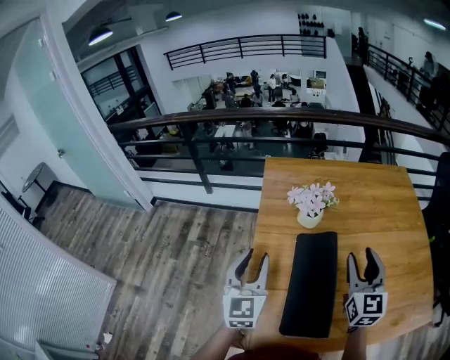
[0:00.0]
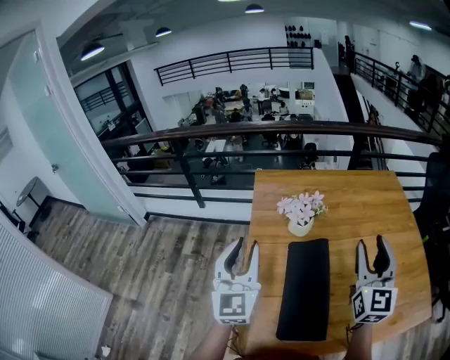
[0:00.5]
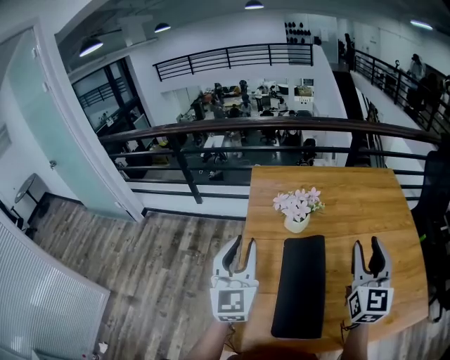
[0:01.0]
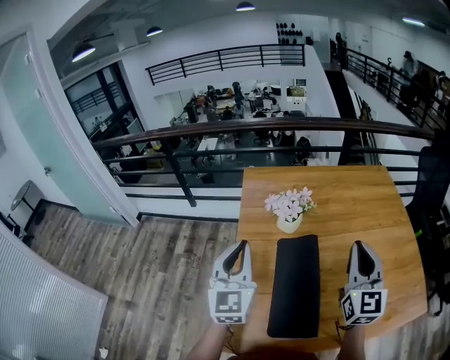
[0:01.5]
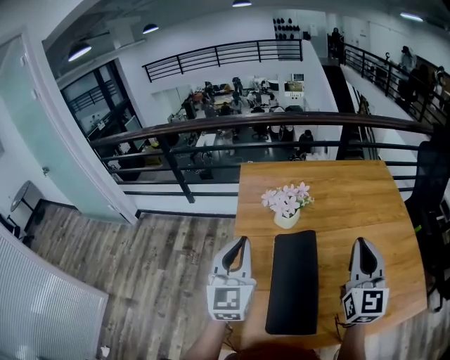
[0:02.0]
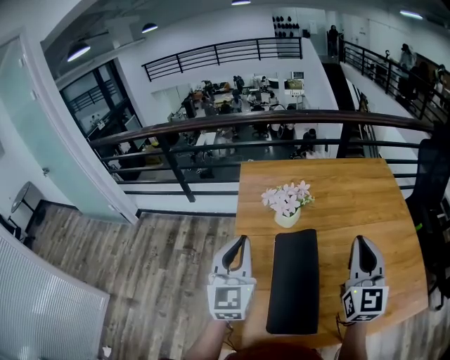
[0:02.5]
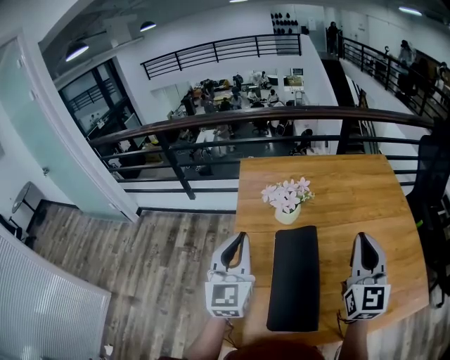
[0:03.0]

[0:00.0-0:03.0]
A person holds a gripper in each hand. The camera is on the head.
0.0 to 1.5 s: The two grippers go about 5 cm upward. The left gripper closes its fingers. The right gripper closes.
1.5 to 3.0 s: There are only small adjustments of the grippers.

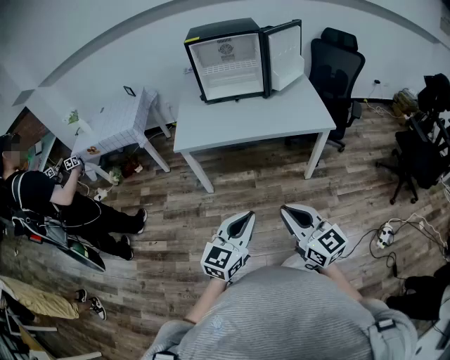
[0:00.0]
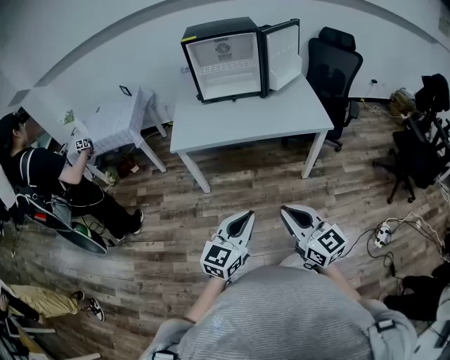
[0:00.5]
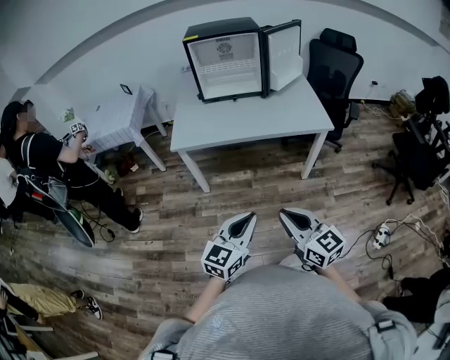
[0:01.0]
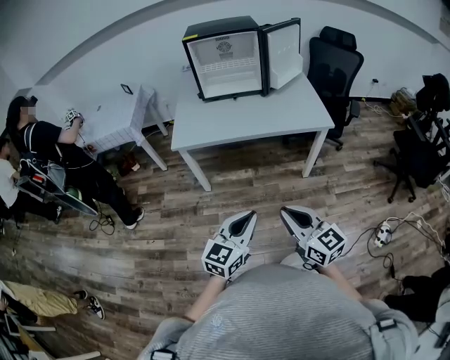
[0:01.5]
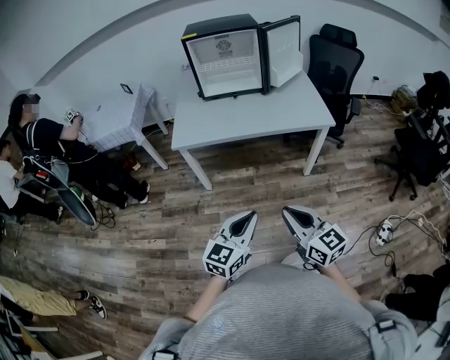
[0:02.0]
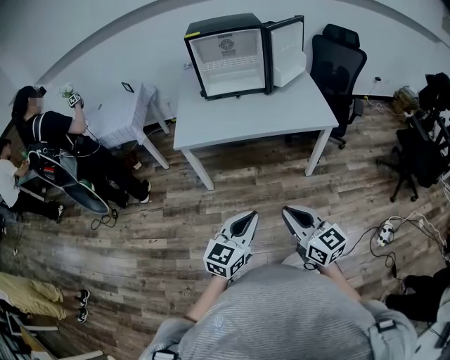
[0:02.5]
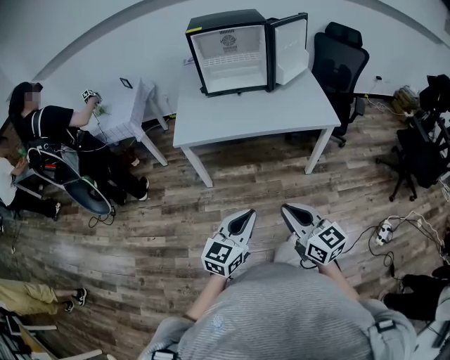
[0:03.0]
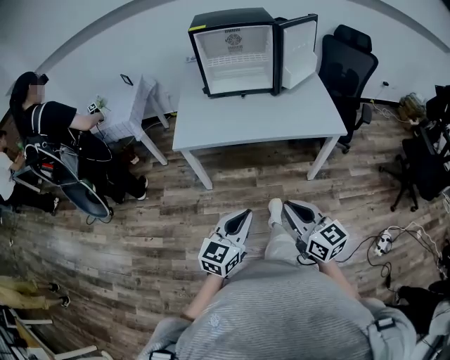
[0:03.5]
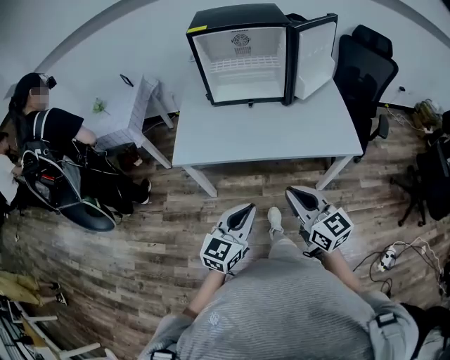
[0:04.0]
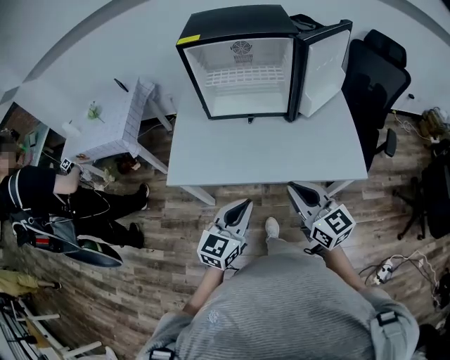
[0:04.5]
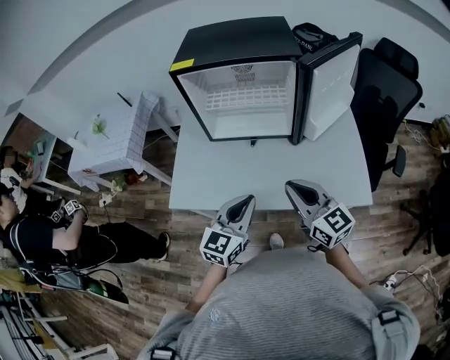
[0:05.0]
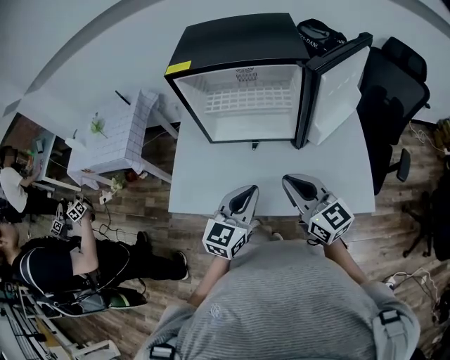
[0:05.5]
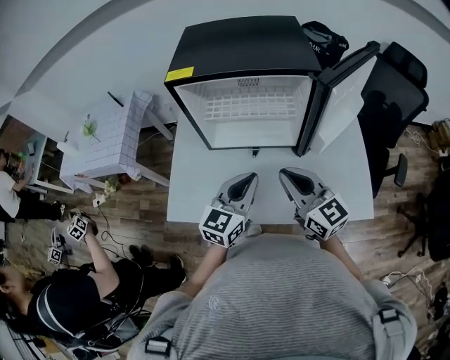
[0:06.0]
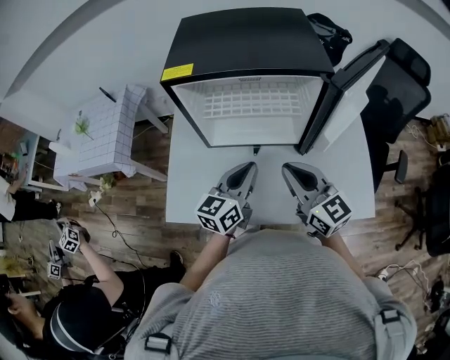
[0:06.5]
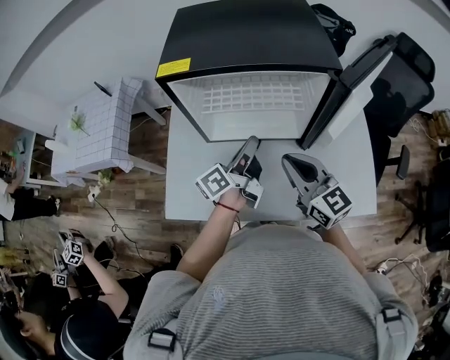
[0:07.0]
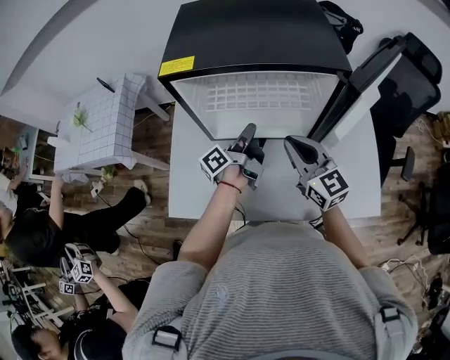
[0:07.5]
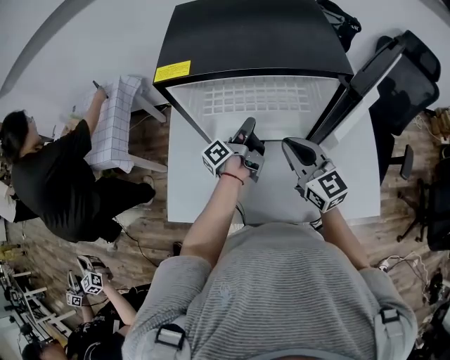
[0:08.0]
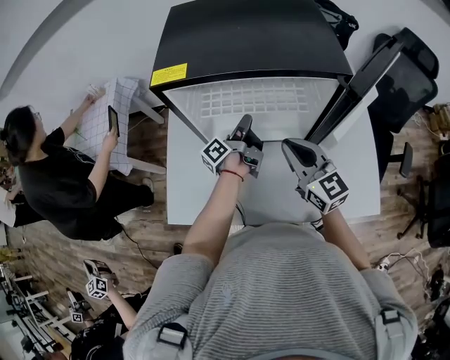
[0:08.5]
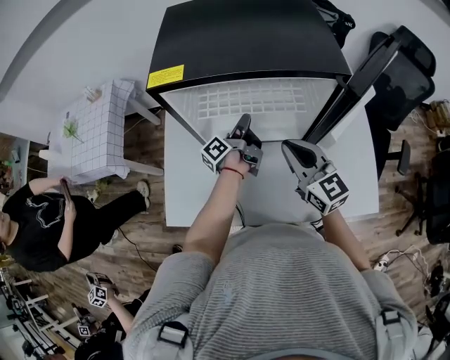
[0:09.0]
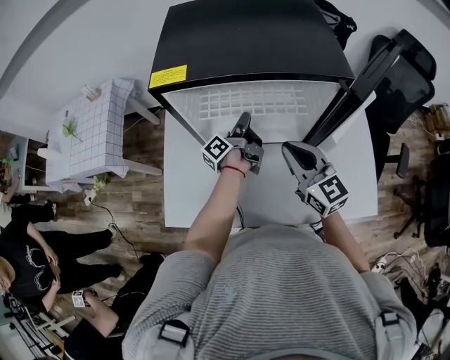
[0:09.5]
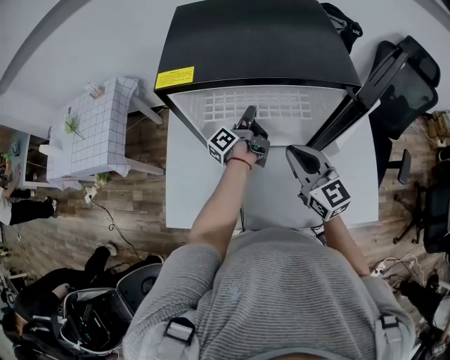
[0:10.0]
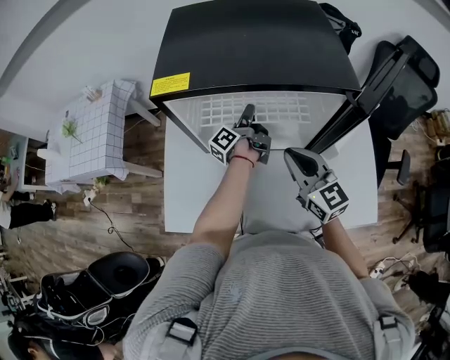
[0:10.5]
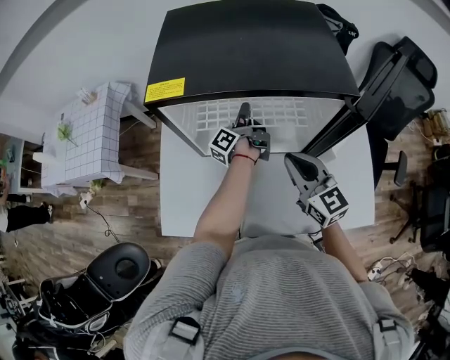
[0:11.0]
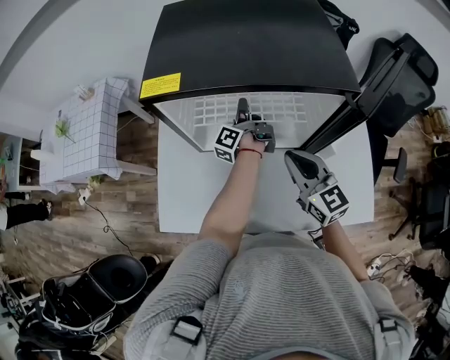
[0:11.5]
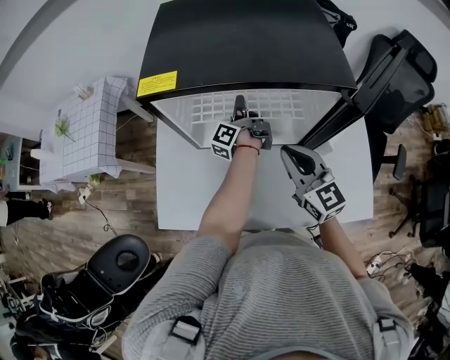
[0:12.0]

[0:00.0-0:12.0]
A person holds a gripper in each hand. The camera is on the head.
0.0 to 2.0 s: There are only small adjustments of the grippers.
2.0 to 4.0 s: The two grippers go roughly 25 cm forward.
4.0 to 6.0 s: Both grippers travel together forward, roughly 40 cm.
6.0 to 8.0 s: The left gripper goes roughly 25 cm forward and downward, and rotates around the line of its fingers by about 80 degrees, counterclockwise from behind; the right gripper shifts some 15 cm forward.
8.0 to 10.0 s: The left gripper shifts about 5 cm forward.
10.0 to 12.0 s: The grippers move only a little.

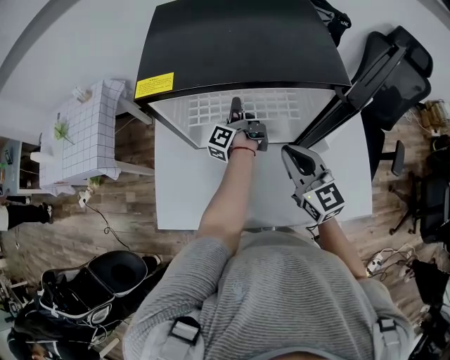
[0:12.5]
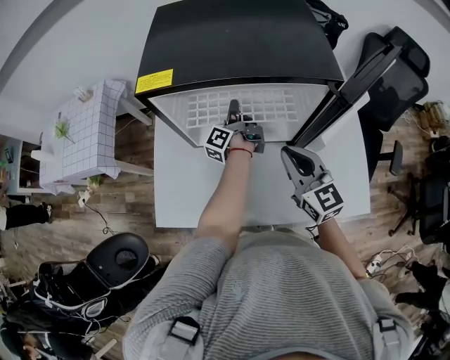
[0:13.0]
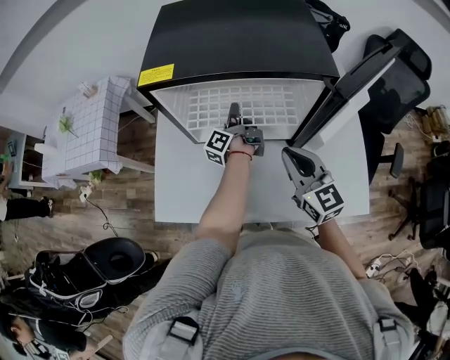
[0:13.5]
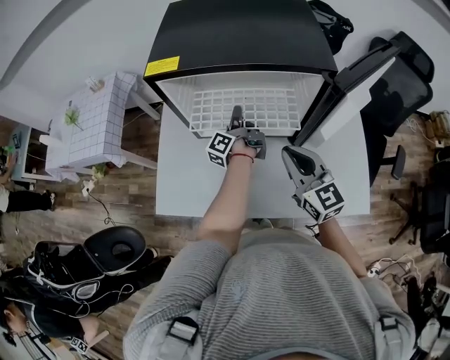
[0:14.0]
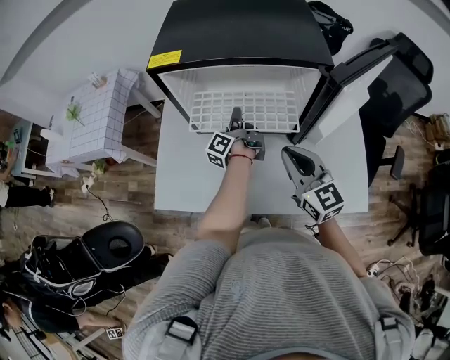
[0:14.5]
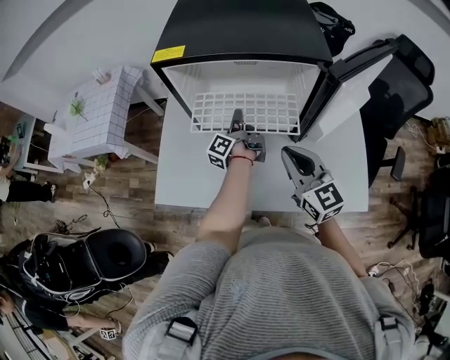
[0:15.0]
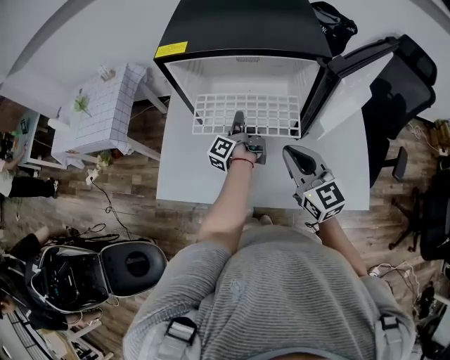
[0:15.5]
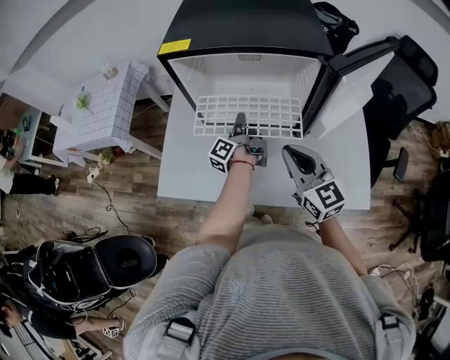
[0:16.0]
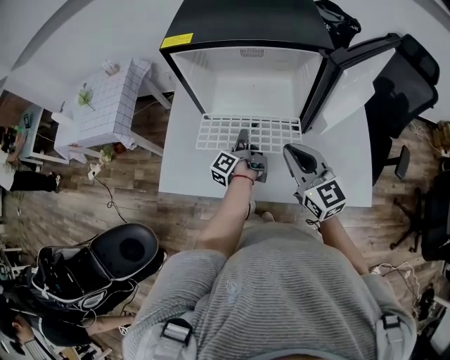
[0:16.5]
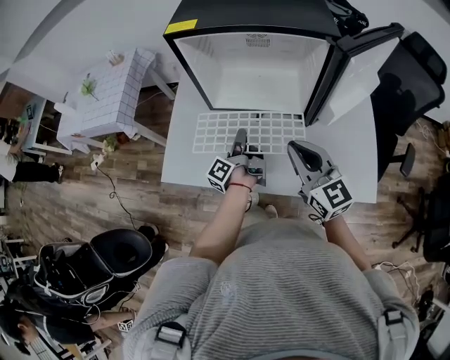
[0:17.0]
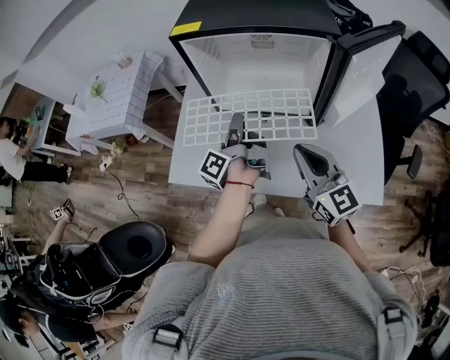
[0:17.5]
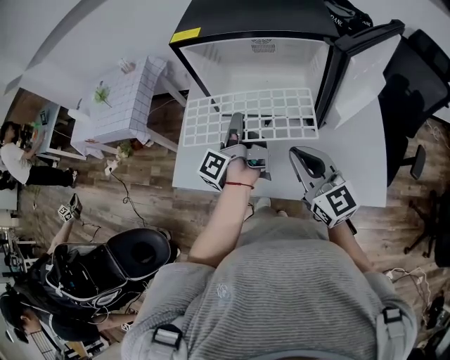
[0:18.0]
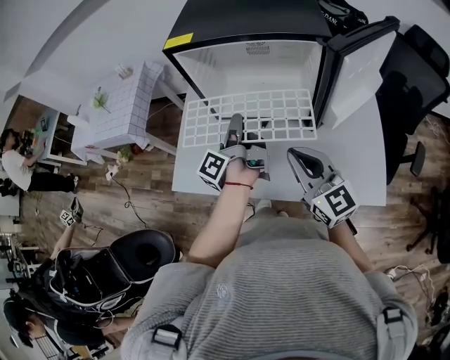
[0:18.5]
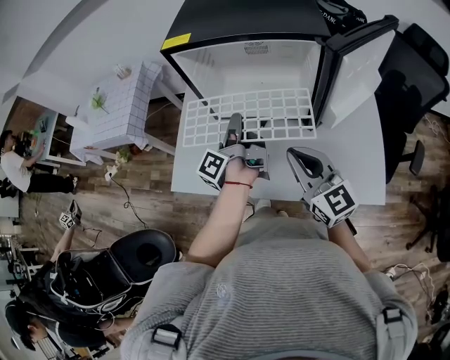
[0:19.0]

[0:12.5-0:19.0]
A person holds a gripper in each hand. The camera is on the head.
12.5 to 14.5 s: The two grippers go some 10 cm backward.
14.5 to 17.0 s: The left gripper moves backward and to the left, approximately 15 cm; the right gripper heads backward, covering roughly 5 cm.
17.0 to 19.0 s: The left gripper travels upward by approximately 10 cm.

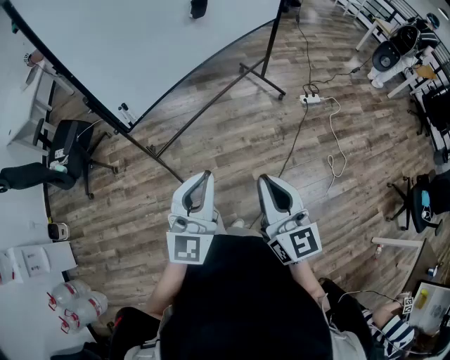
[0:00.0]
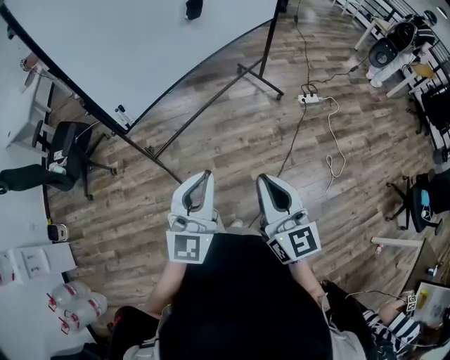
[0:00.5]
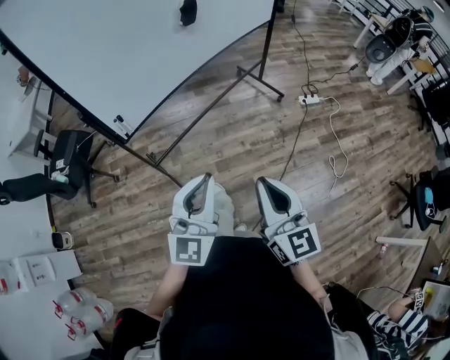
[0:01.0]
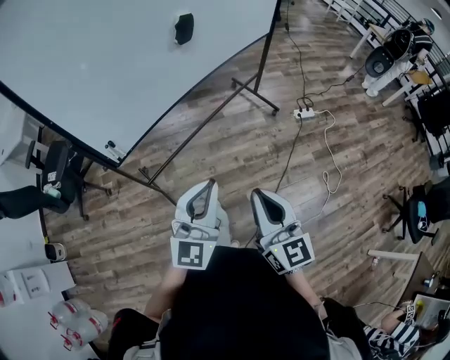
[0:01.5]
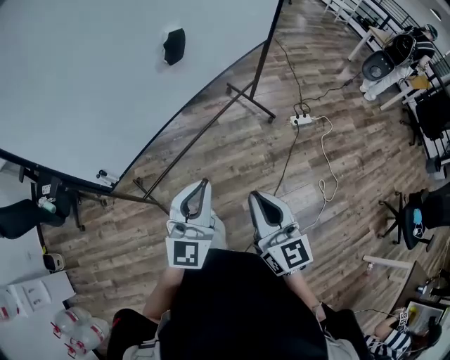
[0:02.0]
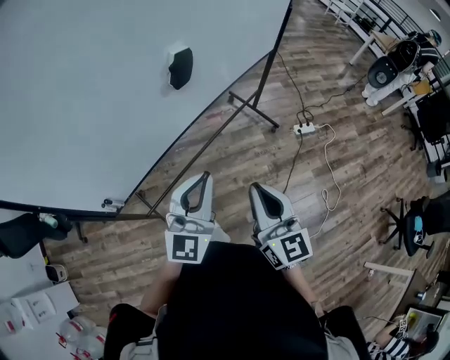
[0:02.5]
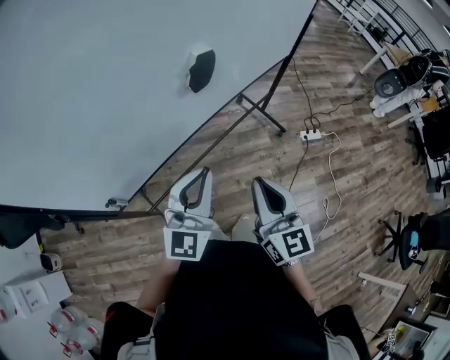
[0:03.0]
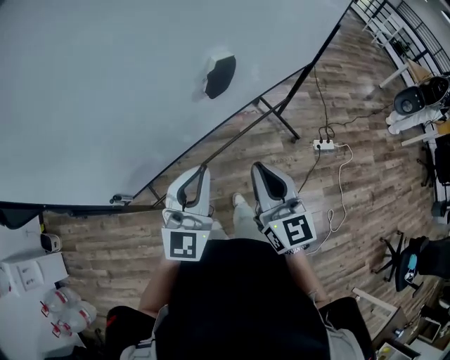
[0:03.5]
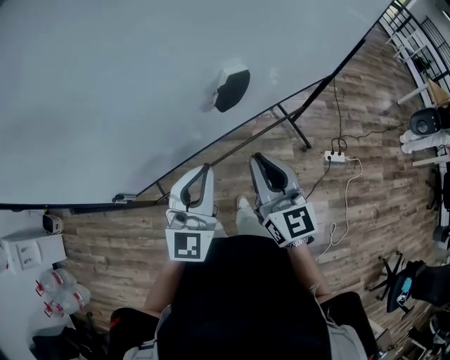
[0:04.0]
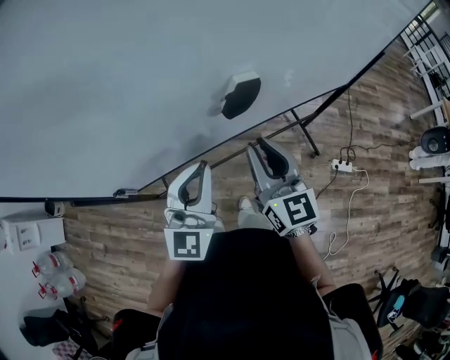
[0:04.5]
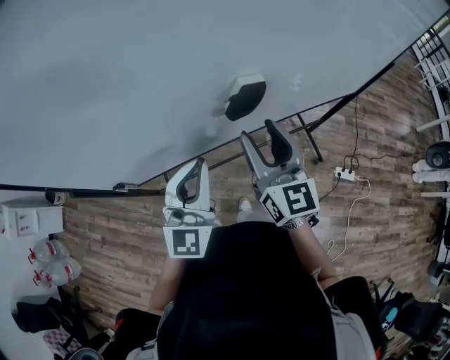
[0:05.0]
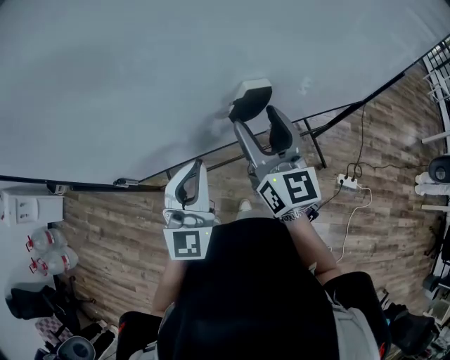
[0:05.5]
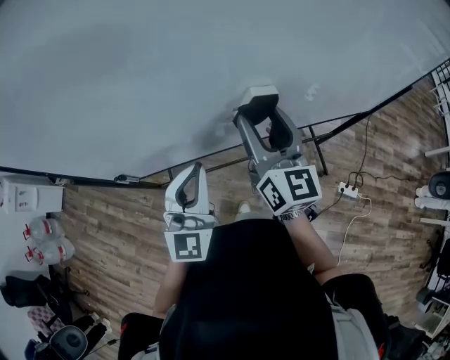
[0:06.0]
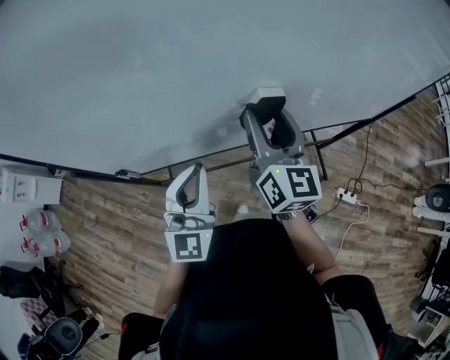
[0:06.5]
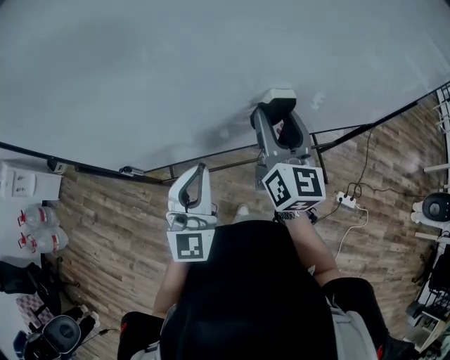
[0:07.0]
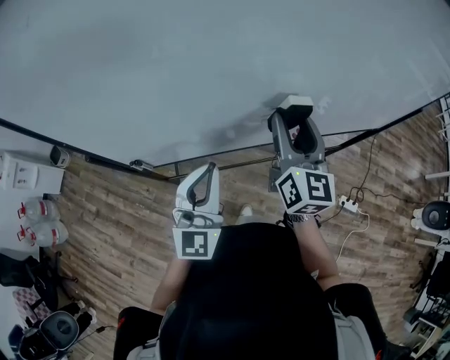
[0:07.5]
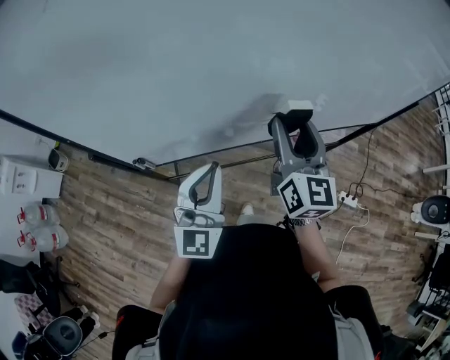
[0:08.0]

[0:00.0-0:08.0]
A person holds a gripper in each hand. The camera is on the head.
0.0 to 2.0 s: Both grippers travel together forward, roughly 20 cm.
2.0 to 4.0 s: The two grippers go about 30 cm forward.
4.0 to 6.0 s: The right gripper is displaced forward by roughly 15 cm, and opens up. Meanwhile the left gripper swivels roughly 20 degrees.
6.0 to 8.0 s: The left gripper heads to the left, covering approximately 5 cm.
